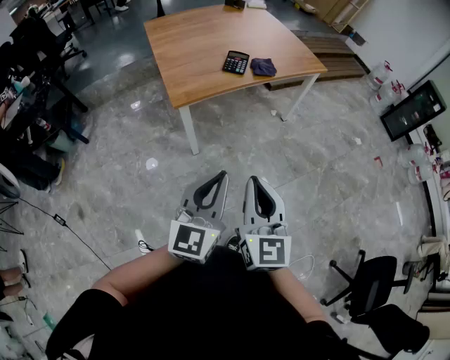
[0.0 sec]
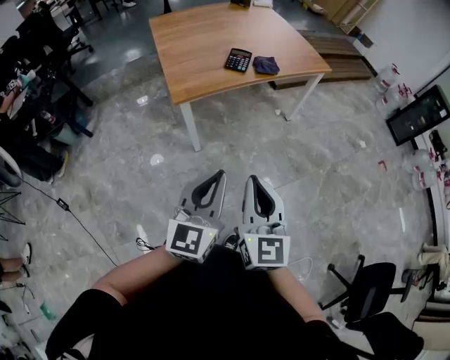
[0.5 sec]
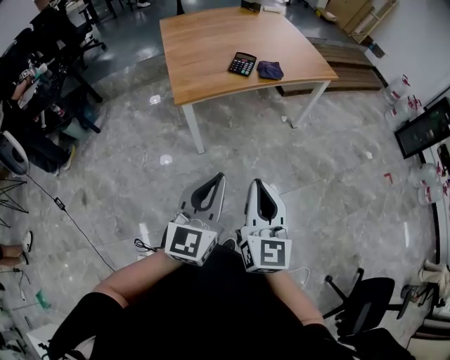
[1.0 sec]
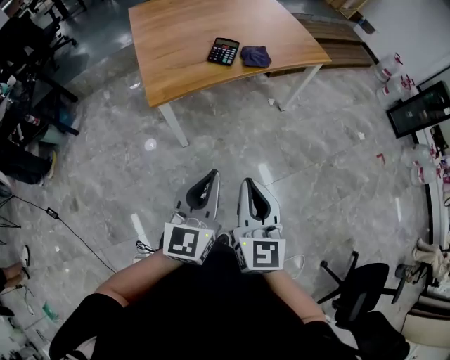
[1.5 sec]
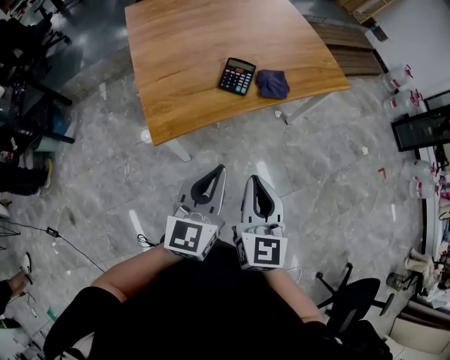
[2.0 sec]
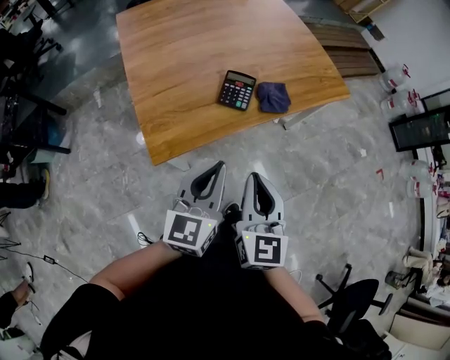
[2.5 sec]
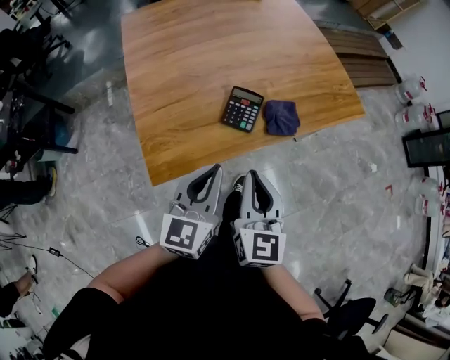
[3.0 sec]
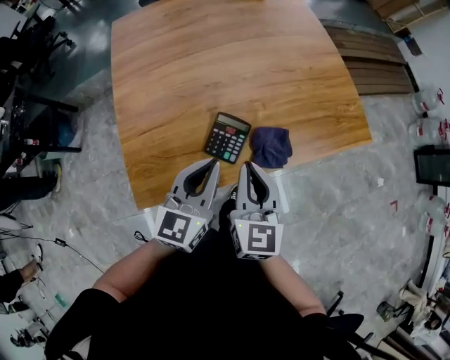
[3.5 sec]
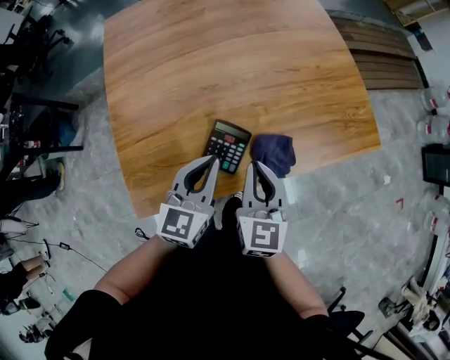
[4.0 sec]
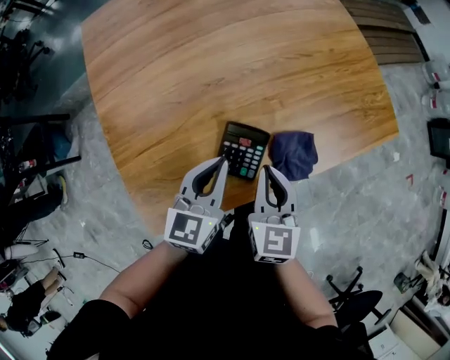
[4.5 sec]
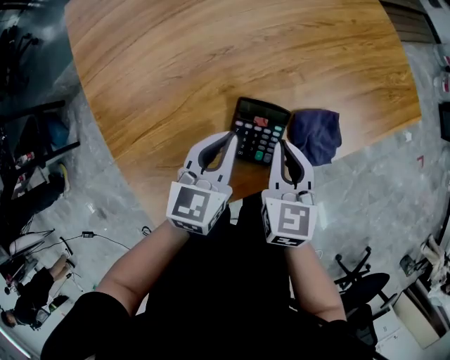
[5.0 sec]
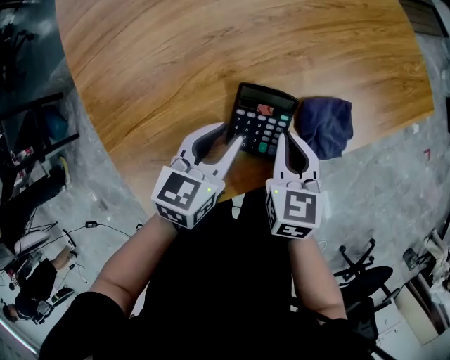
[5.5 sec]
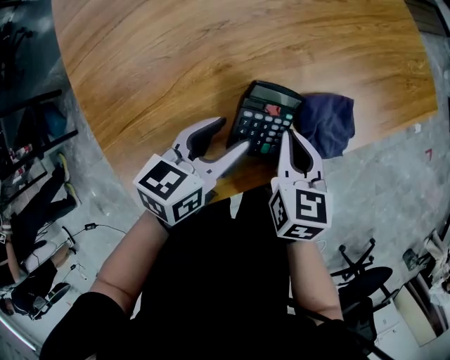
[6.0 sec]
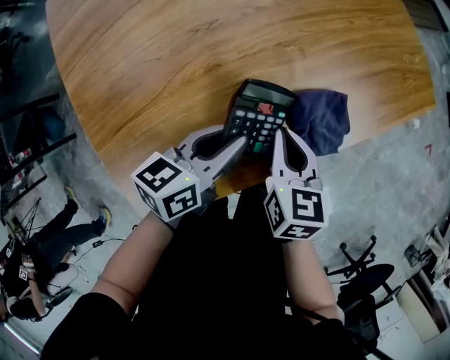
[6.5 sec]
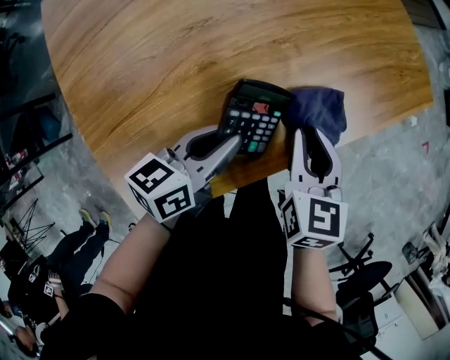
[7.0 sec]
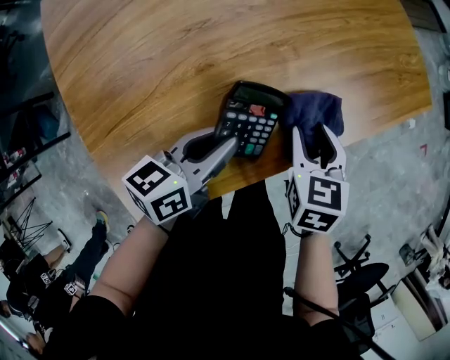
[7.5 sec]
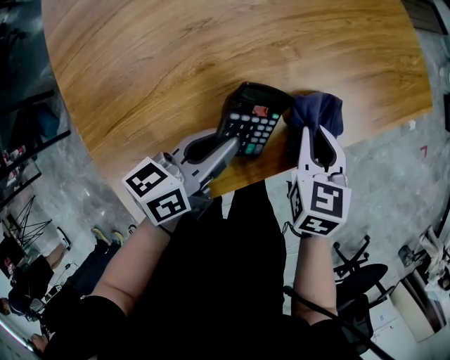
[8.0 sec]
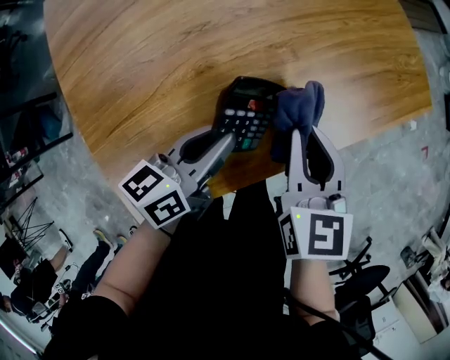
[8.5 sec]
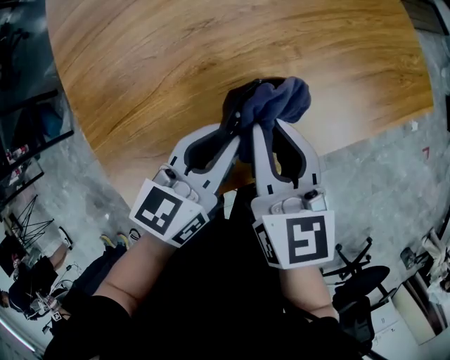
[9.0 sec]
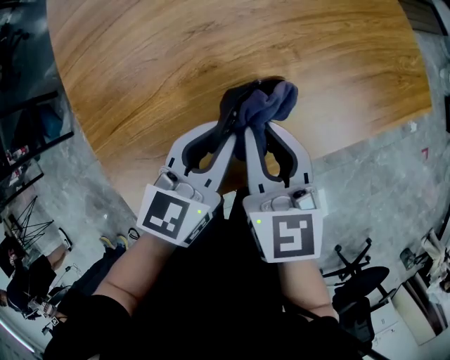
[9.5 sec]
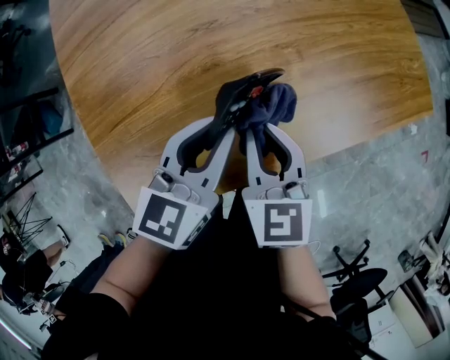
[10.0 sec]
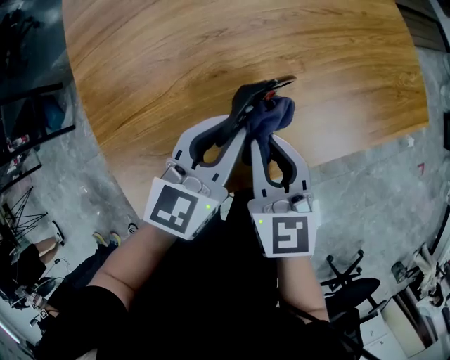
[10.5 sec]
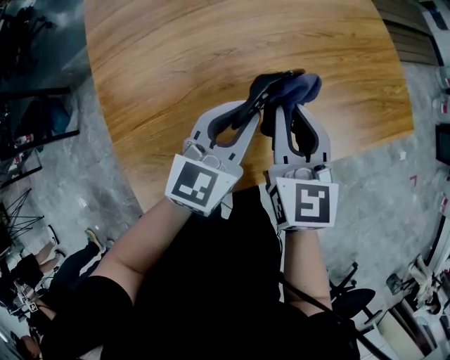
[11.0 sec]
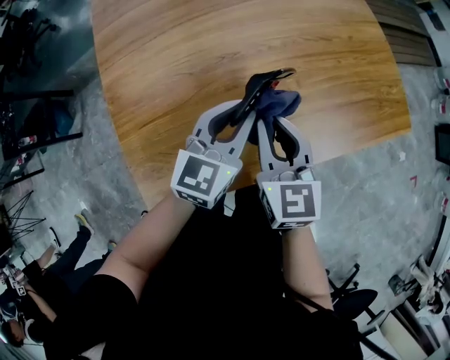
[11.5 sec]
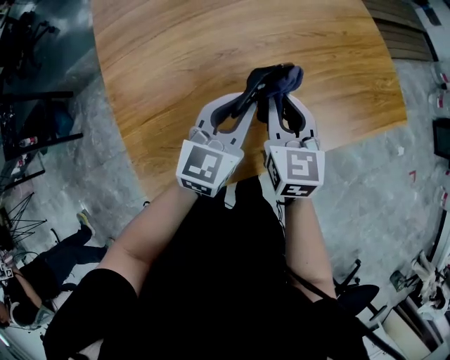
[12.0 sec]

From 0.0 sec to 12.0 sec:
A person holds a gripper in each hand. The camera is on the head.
From 0.0 sec to 2.0 sec: Both grippers move forward, some 35 cm.
From 2.0 sec to 4.0 sec: The pair of grippers is taken forward, about 40 cm.
From 4.0 sec to 6.0 sec: The grippers both shift downward by roughly 20 cm. The right gripper swivels some 30 degrees. Meanwhile the left gripper rotates about 40 degrees, and opens up.
From 6.0 sec to 8.0 sec: The right gripper heads to the right, covering approximately 5 cm, and opens, then closes once more; the left gripper closes up.
From 8.0 sec to 10.0 sec: The left gripper is displaced upward by some 5 cm, and turns by approximately 30 degrees. The right gripper heads to the left and upward, covering roughly 15 cm, and rotates approximately 20 degrees.
From 10.0 sec to 12.0 sec: The right gripper goes approximately 10 cm upward and forward; the left gripper moves upward, about 5 cm.

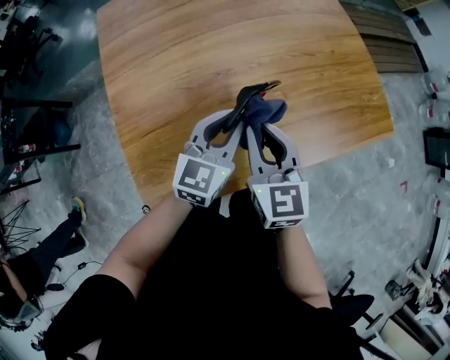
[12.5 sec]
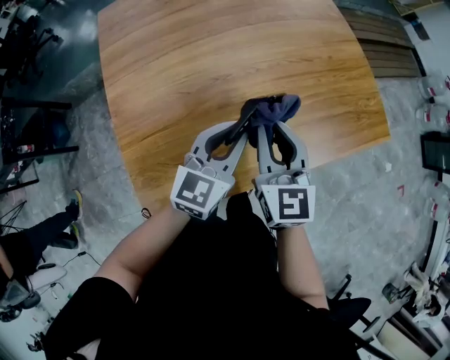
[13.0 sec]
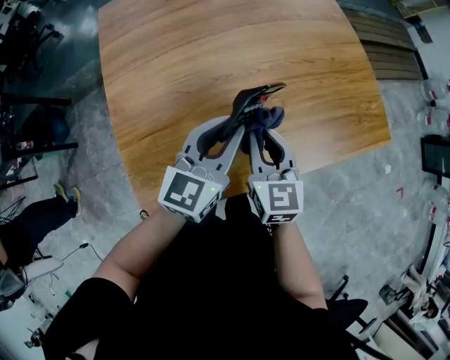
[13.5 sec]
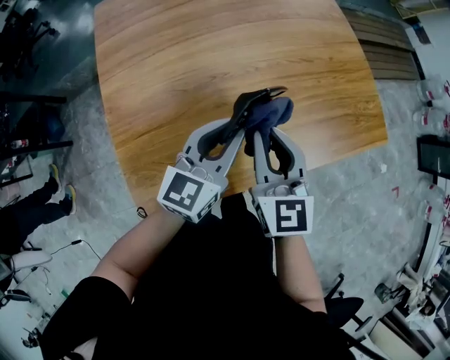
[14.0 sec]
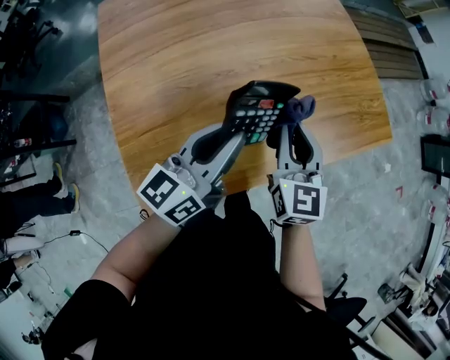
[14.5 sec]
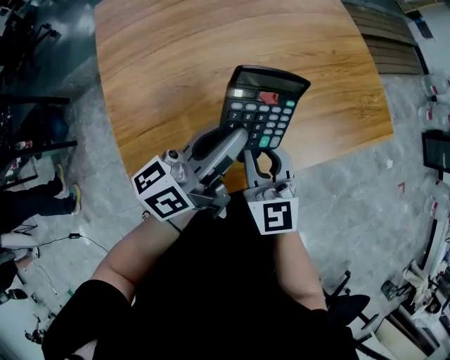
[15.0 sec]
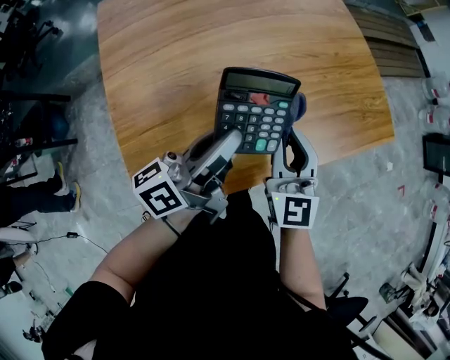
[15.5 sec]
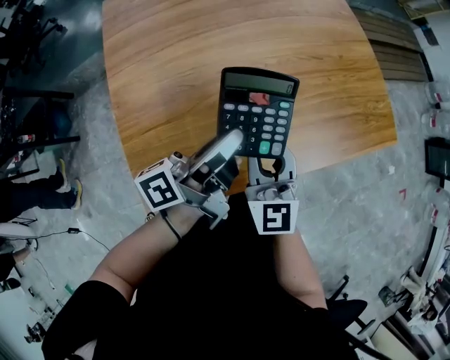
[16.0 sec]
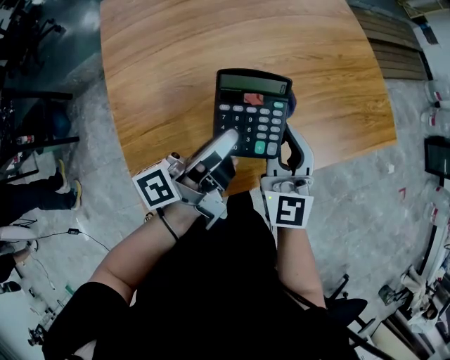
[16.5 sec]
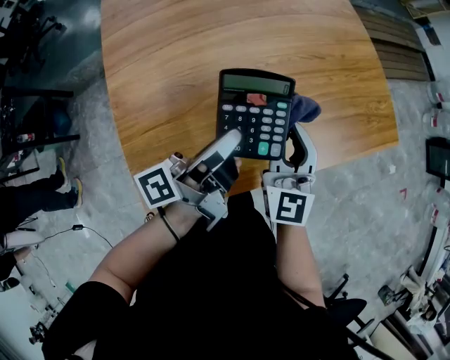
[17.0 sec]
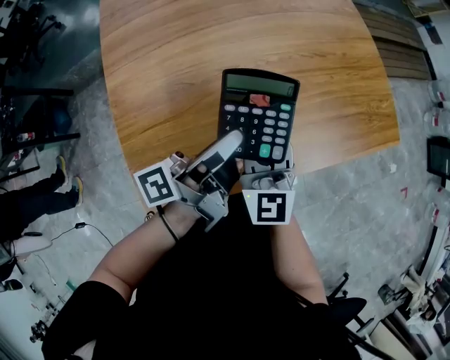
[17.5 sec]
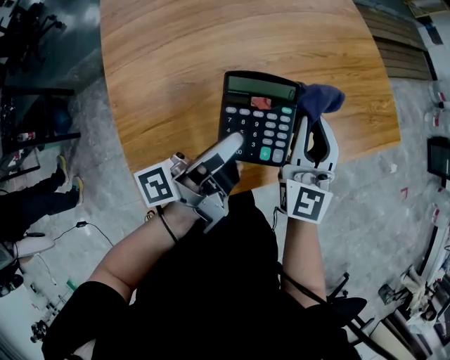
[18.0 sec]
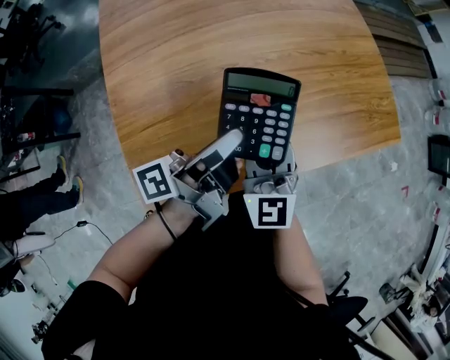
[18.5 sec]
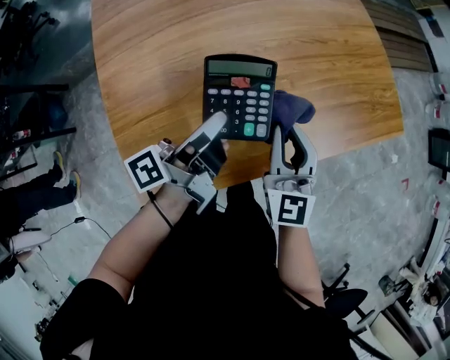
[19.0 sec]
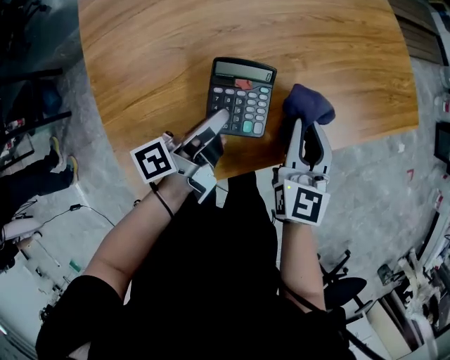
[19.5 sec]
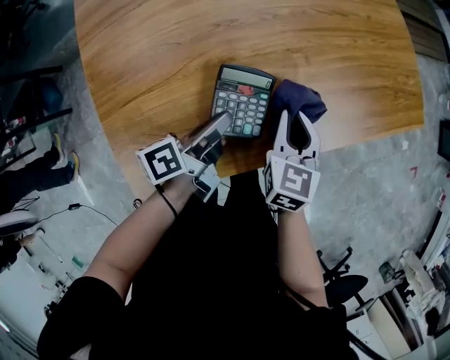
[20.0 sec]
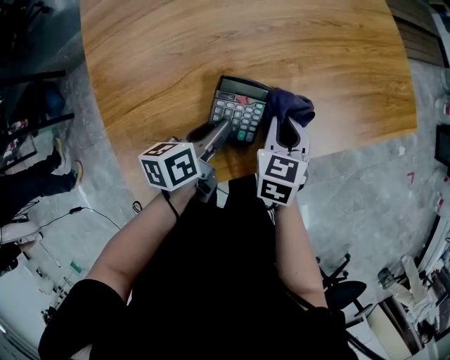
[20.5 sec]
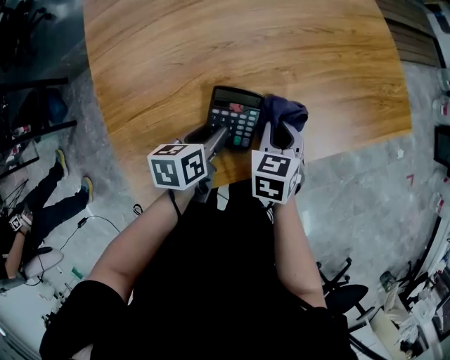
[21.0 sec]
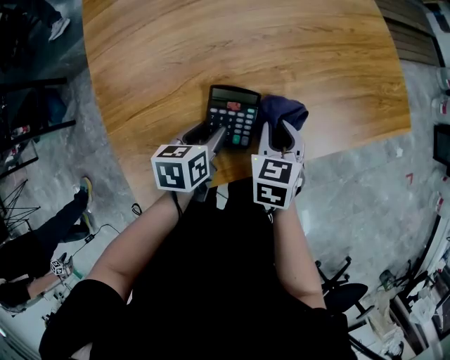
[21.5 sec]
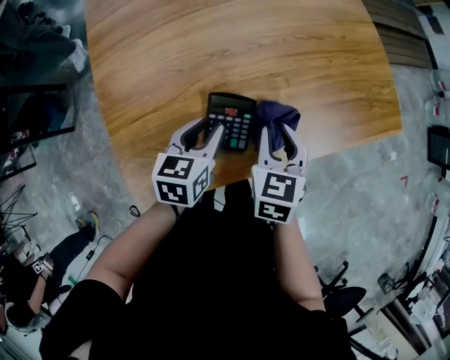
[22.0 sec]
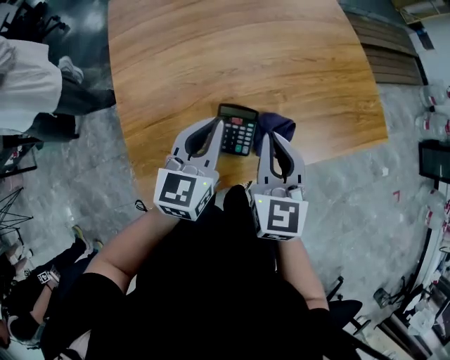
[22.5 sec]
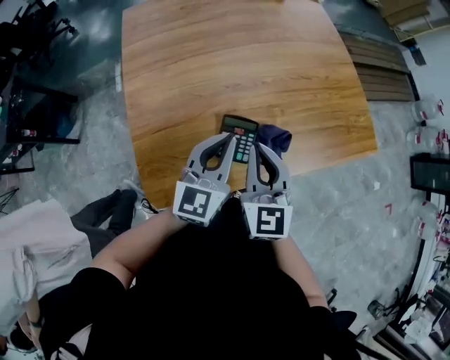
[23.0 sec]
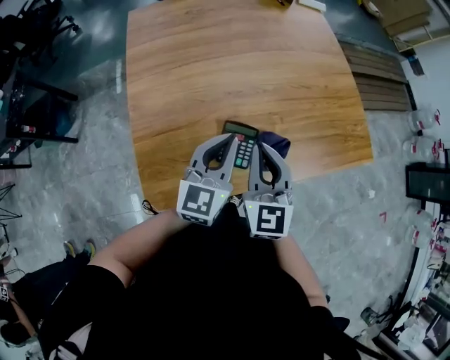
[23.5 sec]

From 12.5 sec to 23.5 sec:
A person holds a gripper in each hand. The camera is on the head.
From 12.5 sec to 14.5 sec: The right gripper shifts some 5 cm to the right. Meanwhile the left gripper travels upward by about 5 cm, and turns by about 30 degrees.
From 14.5 sec to 16.0 sec: The right gripper swings left and right, about 5 cm each way, with 2 reversals, and turns by about 20 degrees. The left gripper rotates around the line of its fingers by about 40 degrees, counterclockwise from behind.
From 16.0 sec to 18.0 sec: The right gripper swings left and right, about 10 cm each way, with 2 reversals.
From 18.0 sec to 20.0 sec: The two grippers go roughly 20 cm downward. The left gripper changes its angle by roughly 30 degrees, while the right gripper tilts its fingers roughly 40 degrees downward.
From 20.0 sec to 21.5 sec: The left gripper tilts its fingers roughly 30 degrees downward, and opens.
From 21.5 sec to 23.5 sec: The two grippers go about 25 cm upward. The left gripper tips its fingers upward by approximately 40 degrees, and closes its fingers. The right gripper tips its fingers upward by some 40 degrees.

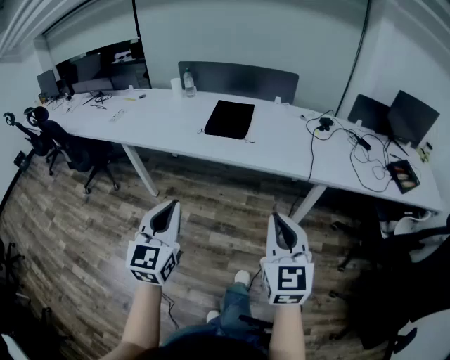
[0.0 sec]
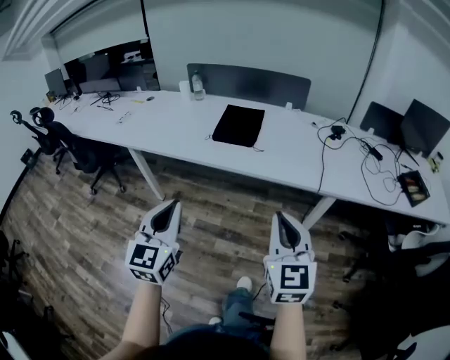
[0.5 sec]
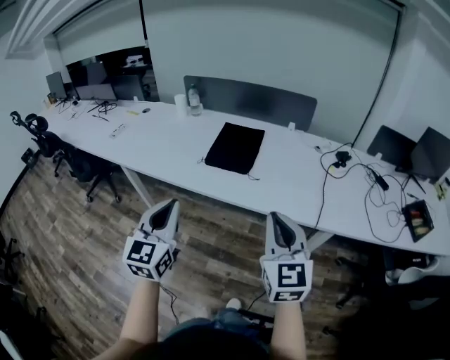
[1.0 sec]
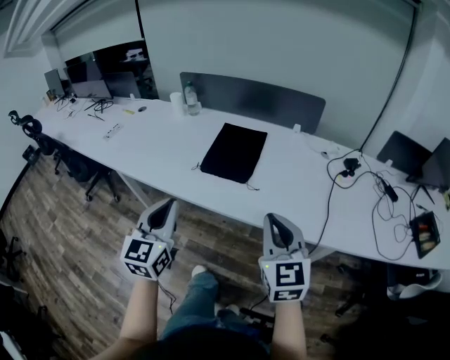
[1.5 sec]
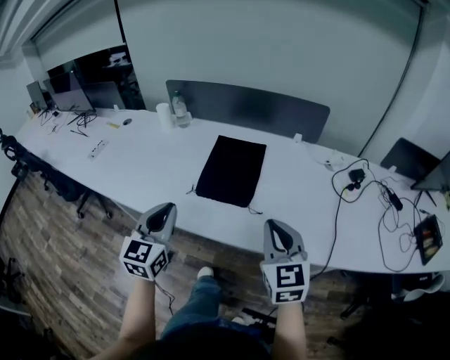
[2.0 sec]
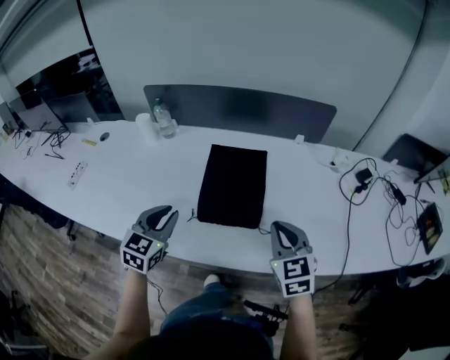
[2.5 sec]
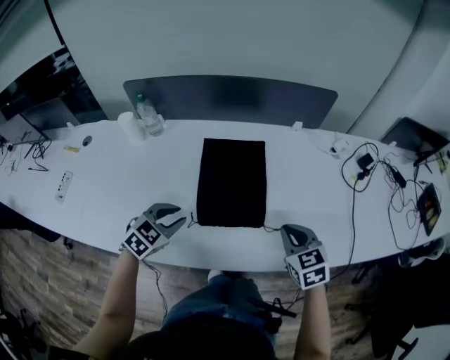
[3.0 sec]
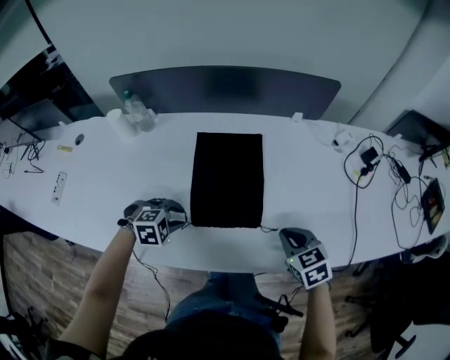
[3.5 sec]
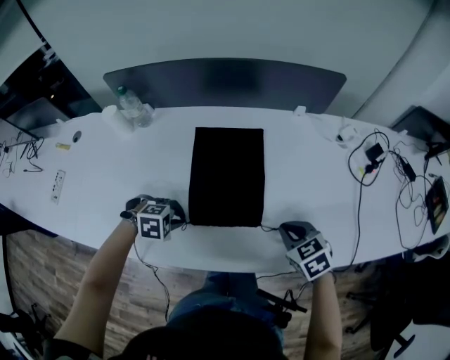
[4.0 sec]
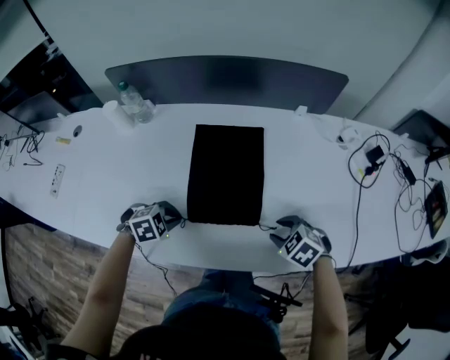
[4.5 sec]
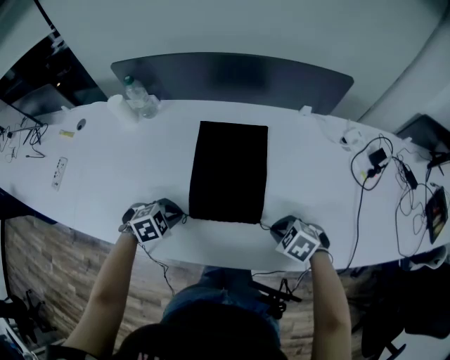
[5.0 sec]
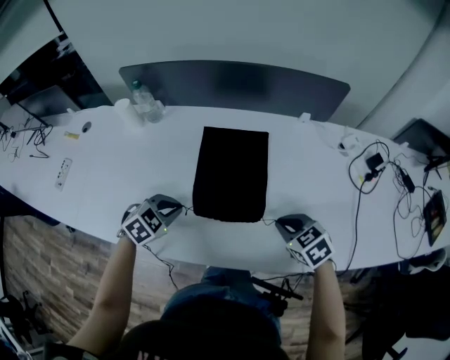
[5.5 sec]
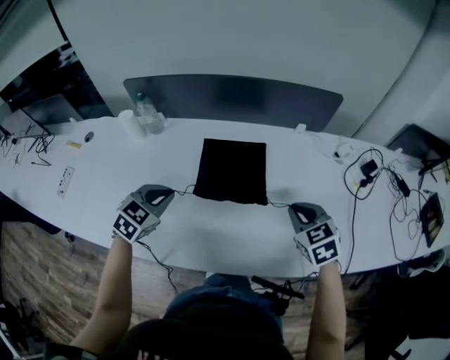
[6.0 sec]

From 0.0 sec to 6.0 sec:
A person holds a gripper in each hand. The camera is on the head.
From 0.0 sec to 2.0 sec: The two grippers travel together, forward, some 40 cm.
From 2.0 sec to 4.0 sec: Both grippers travel together downward, some 20 cm. The right gripper tilts its fingers about 40 degrees downward. Meanwhile the left gripper tilts its fingers some 70 degrees downward.
From 4.0 sec to 6.0 sec: The right gripper moves upward, roughly 10 cm, and opens, then closes once more. The left gripper goes approximately 15 cm upward, and tips its fingers upward by about 30 degrees.
